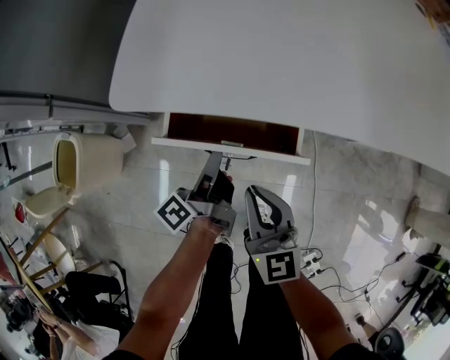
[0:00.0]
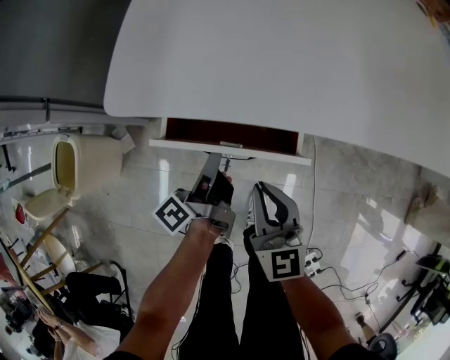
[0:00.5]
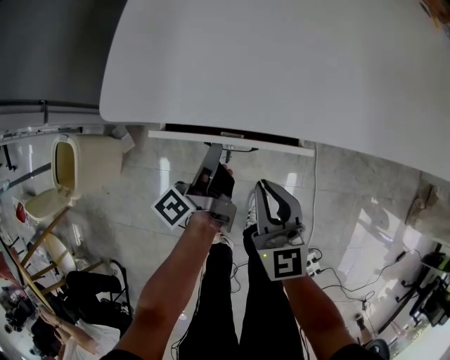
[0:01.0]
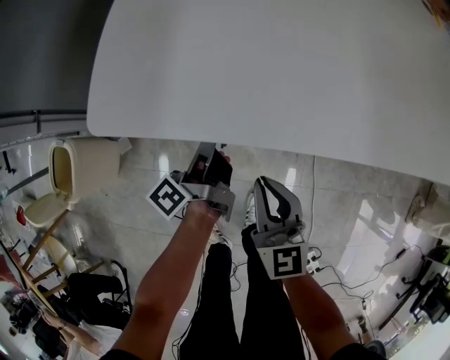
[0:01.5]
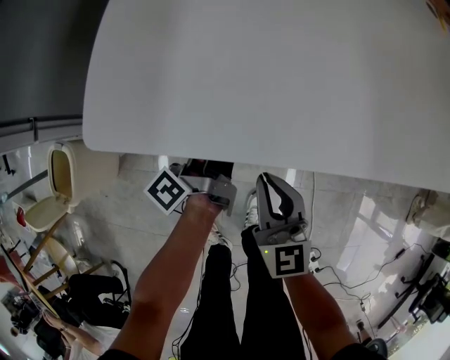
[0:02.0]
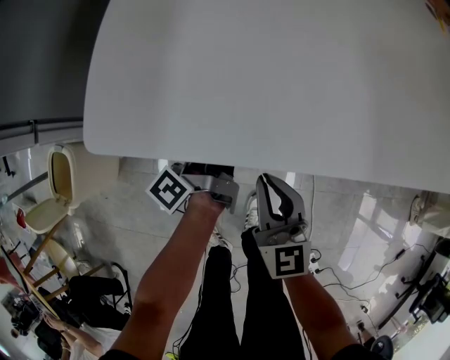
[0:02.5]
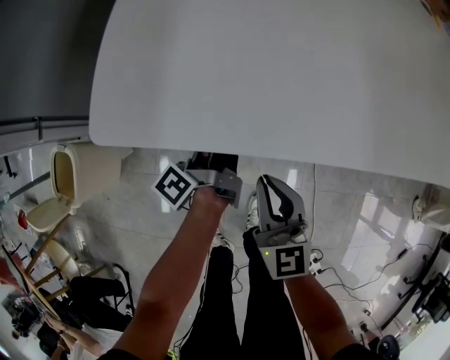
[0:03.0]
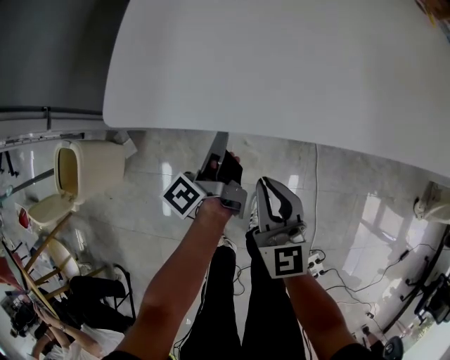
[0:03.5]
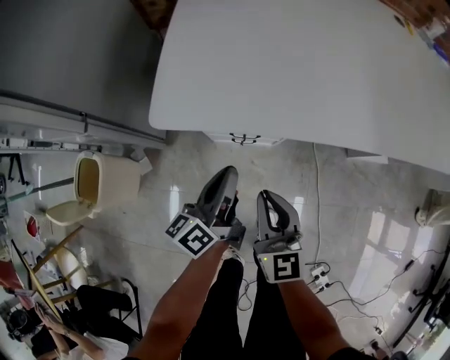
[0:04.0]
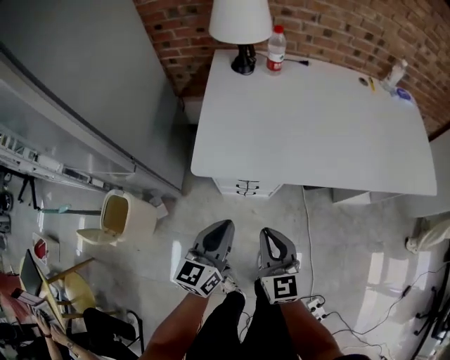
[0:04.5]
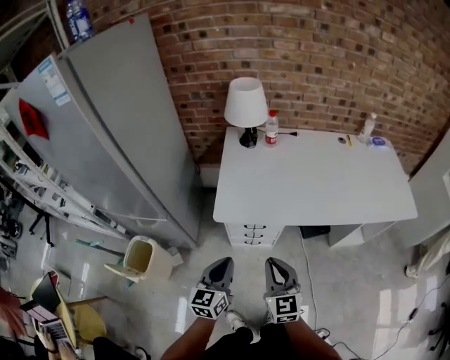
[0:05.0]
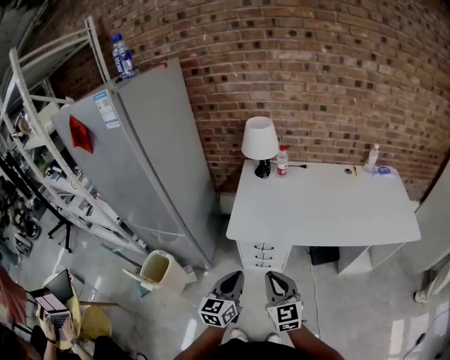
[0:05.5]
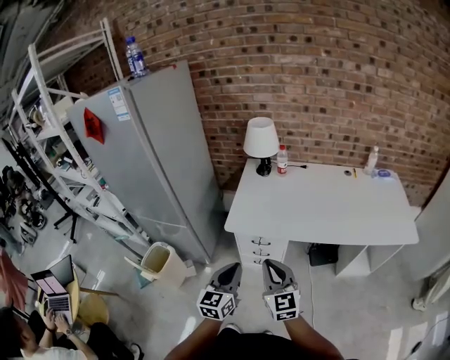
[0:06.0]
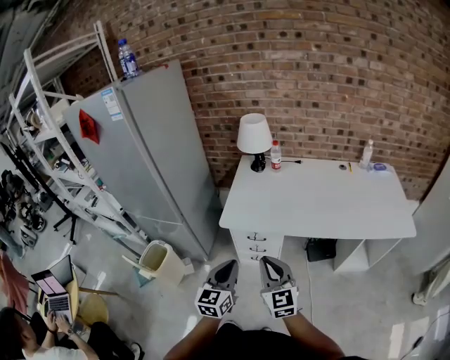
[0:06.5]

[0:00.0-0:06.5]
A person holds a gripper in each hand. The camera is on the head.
0:00.0 to 0:02.0: The left gripper shifts some 10 cm forward. The right gripper heads forward, covering roughly 5 cm.
0:02.0 to 0:04.5: The two grippers go about 25 cm upward and backward. The left gripper twists roughly 60 degrees clockwise, seen from behind.
0:04.5 to 0:06.5: Both grippers travel together upward and backward, approximately 25 cm.

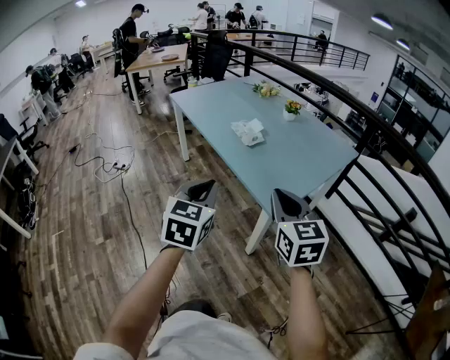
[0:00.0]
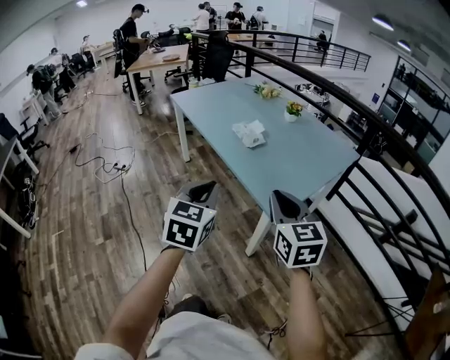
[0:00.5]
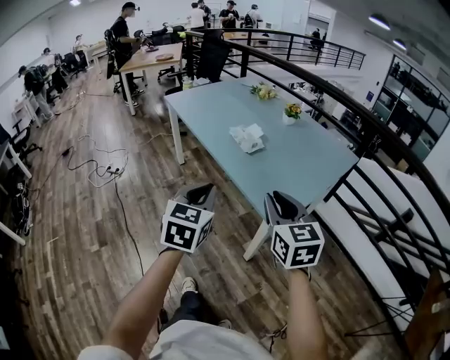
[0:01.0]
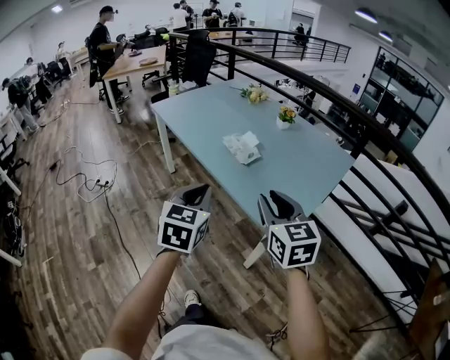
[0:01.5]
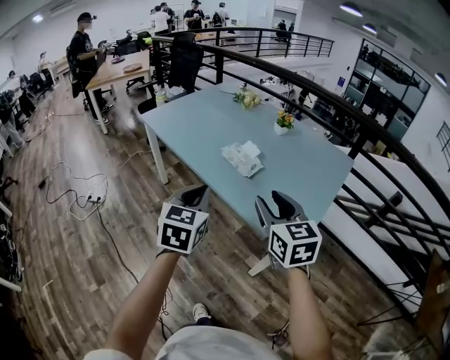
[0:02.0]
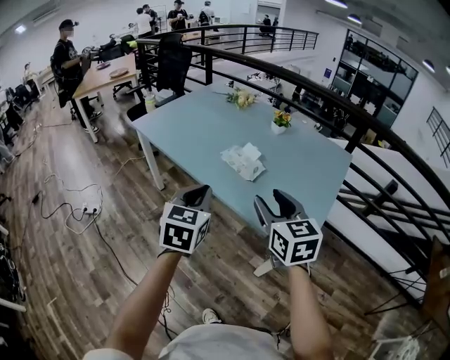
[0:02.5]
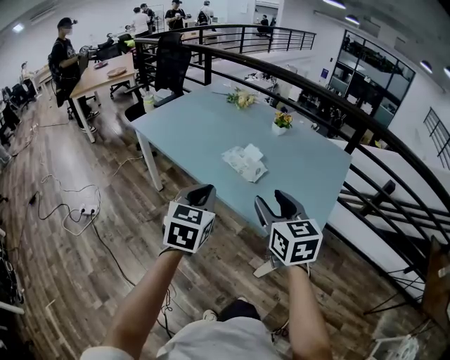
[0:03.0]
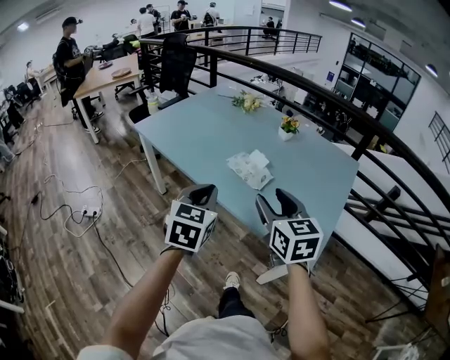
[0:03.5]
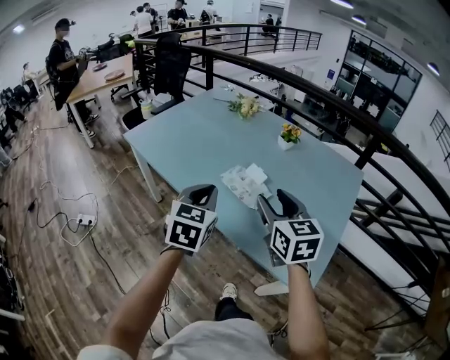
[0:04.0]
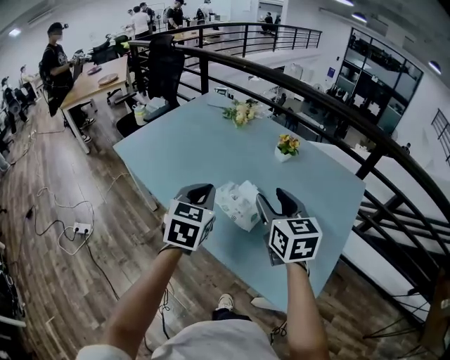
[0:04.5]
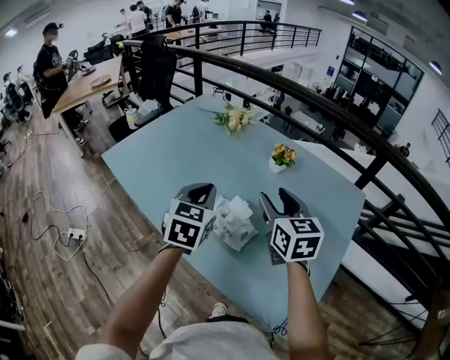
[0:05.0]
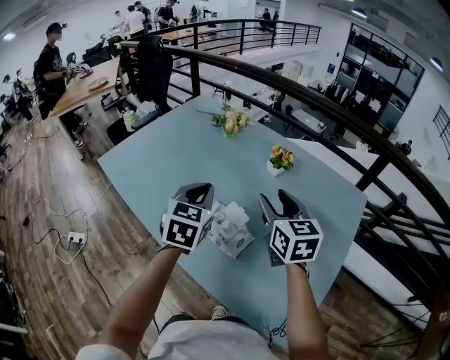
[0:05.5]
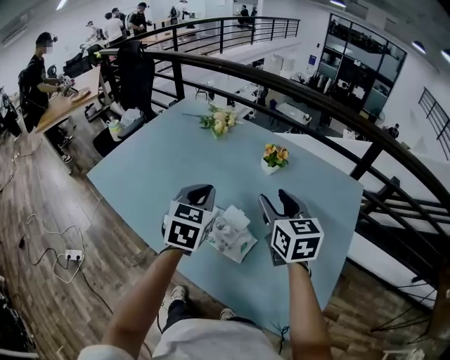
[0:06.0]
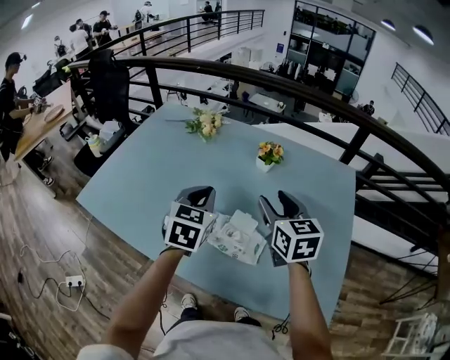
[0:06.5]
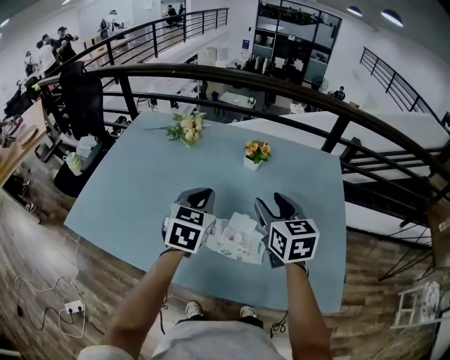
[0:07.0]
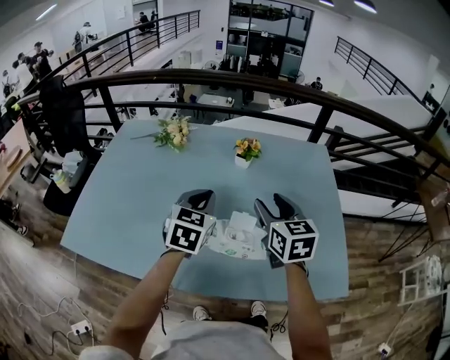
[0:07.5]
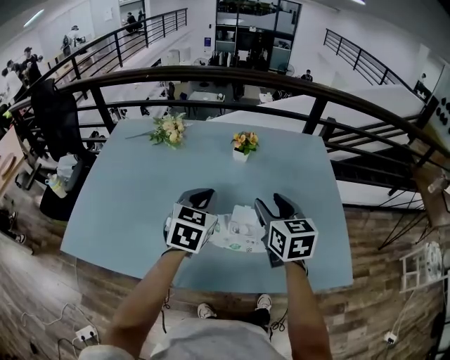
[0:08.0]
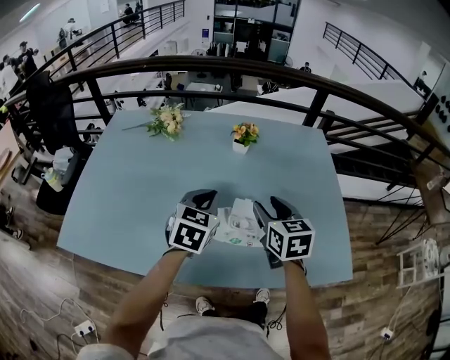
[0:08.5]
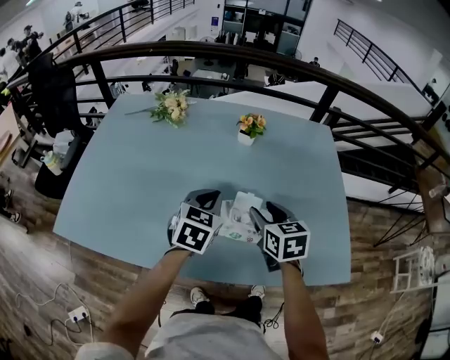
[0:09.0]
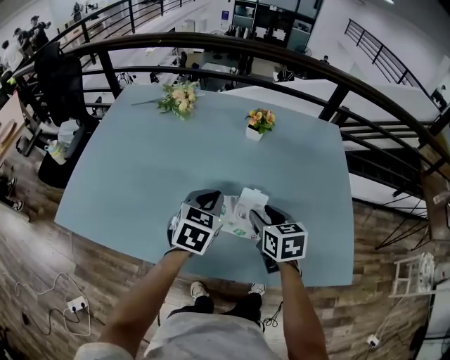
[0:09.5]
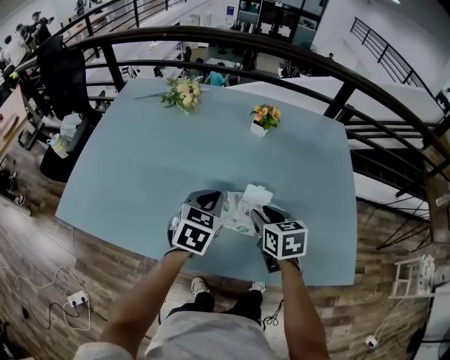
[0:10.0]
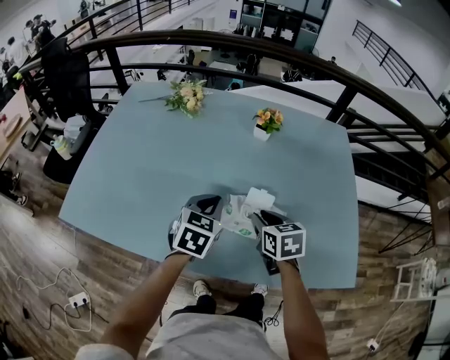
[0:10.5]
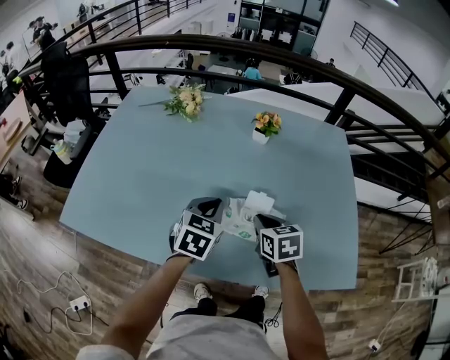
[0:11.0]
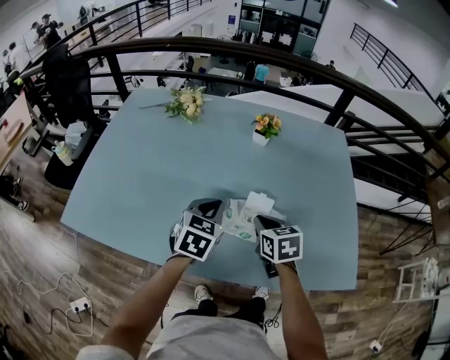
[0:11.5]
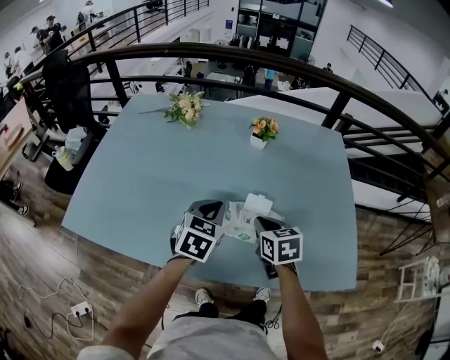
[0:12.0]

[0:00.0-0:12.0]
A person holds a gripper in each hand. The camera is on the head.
0:00.0 to 0:02.0: The left gripper shifts roughly 20 cm forward. Meanwhile the right gripper moves forward and to the left, roughly 20 cm, and opens up.
0:02.0 to 0:04.0: The two grippers go roughly 20 cm forward.
0:04.0 to 0:06.0: The grippers both shift forward by some 25 cm.
0:06.0 to 0:08.0: The left gripper shifts by some 5 cm, and rotates approximately 30 degrees. The right gripper shifts by roughly 5 cm, and turns by approximately 30 degrees.
0:08.0 to 0:10.0: The right gripper shifts about 15 cm downward, and rotates some 20 degrees, while the left gripper heads downward, covering roughly 10 cm.
0:10.0 to 0:12.0: The right gripper closes up.

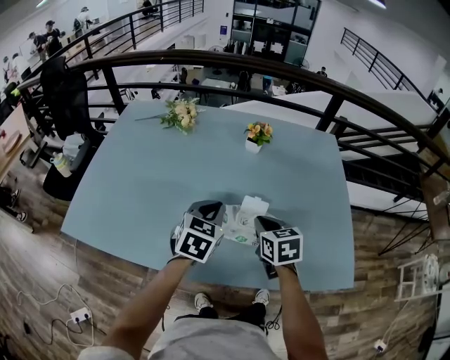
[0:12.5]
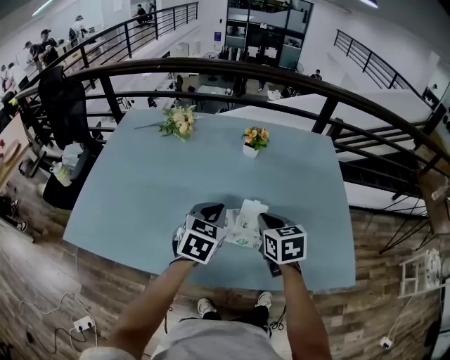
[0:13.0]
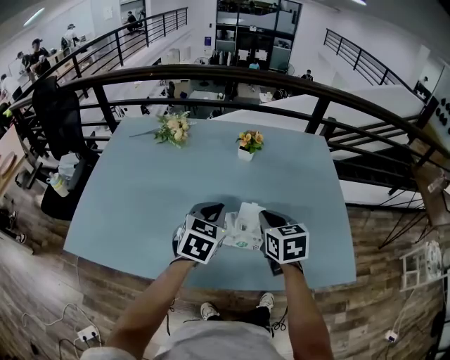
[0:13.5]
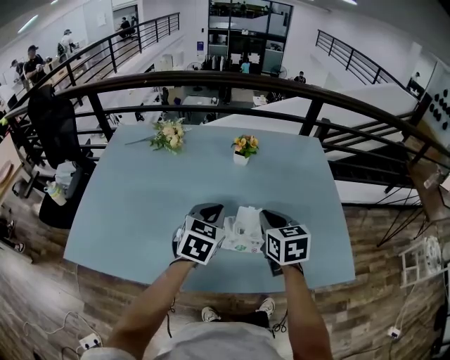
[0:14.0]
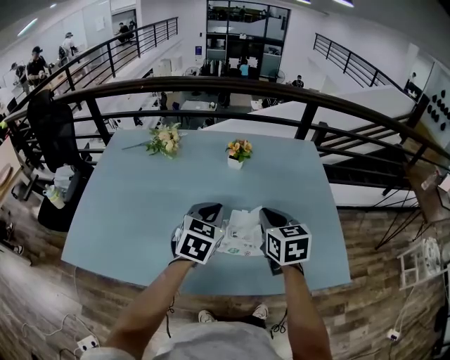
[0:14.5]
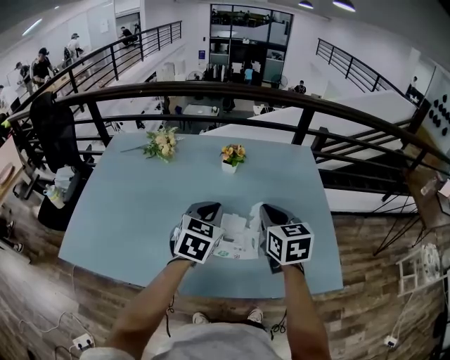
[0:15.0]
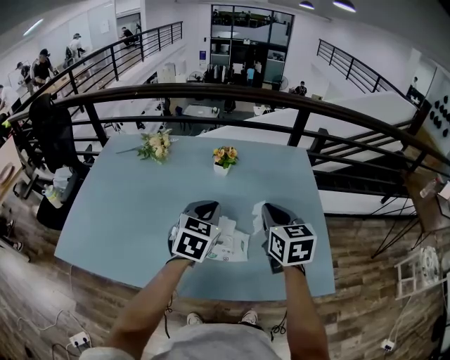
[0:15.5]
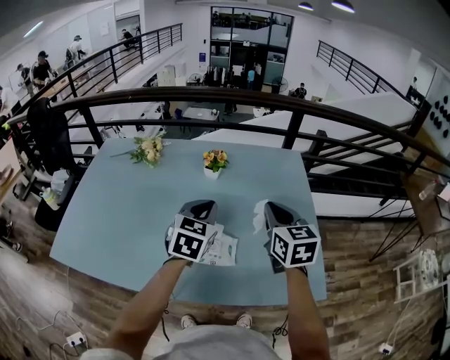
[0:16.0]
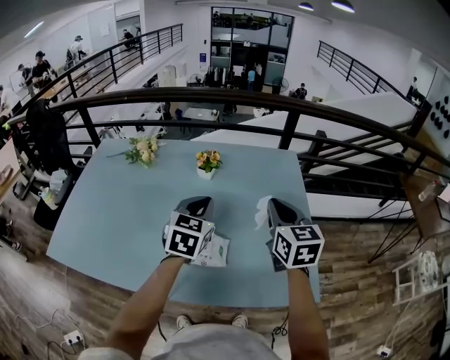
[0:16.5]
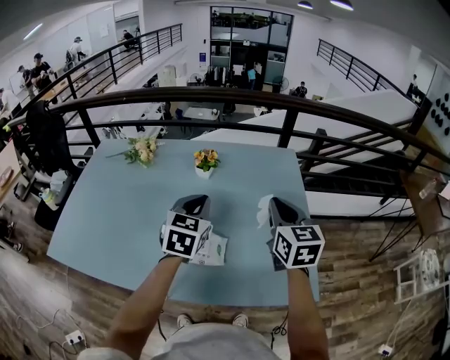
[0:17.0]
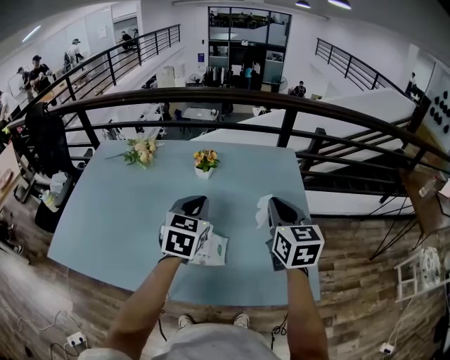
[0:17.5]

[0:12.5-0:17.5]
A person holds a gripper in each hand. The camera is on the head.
0:12.5 to 0:15.0: The left gripper travels upward and to the right by approximately 10 cm, while the right gripper moves upward and to the right, approximately 15 cm.
0:15.0 to 0:17.5: The right gripper moves to the right, about 15 cm. Meanwhile the left gripper moves to the right, roughly 10 cm.

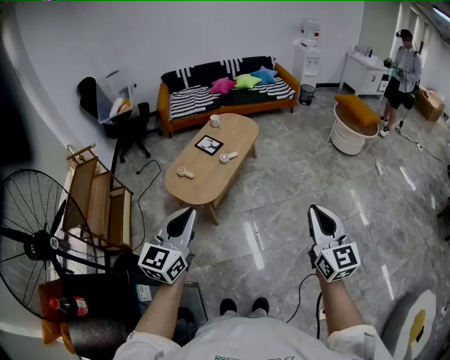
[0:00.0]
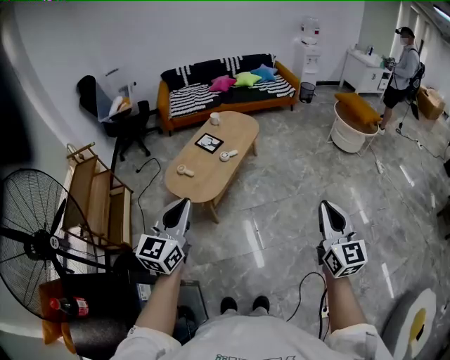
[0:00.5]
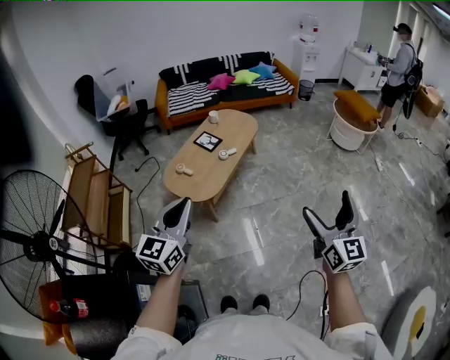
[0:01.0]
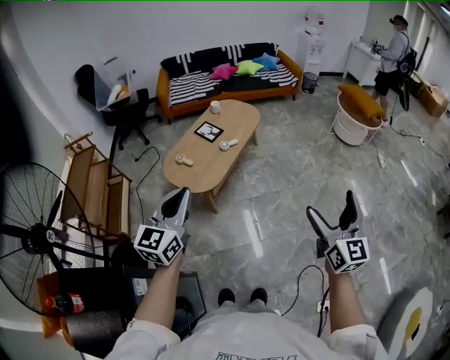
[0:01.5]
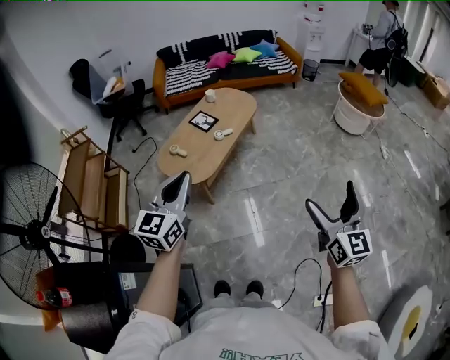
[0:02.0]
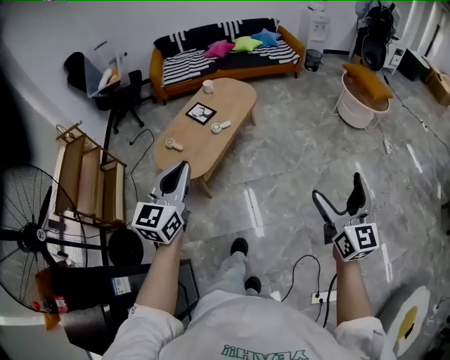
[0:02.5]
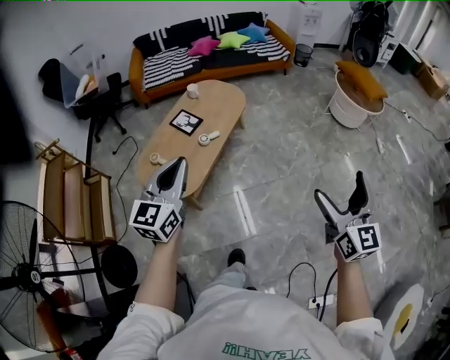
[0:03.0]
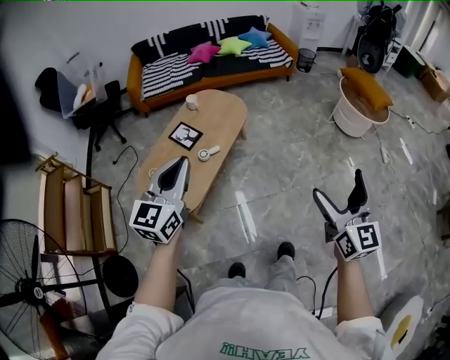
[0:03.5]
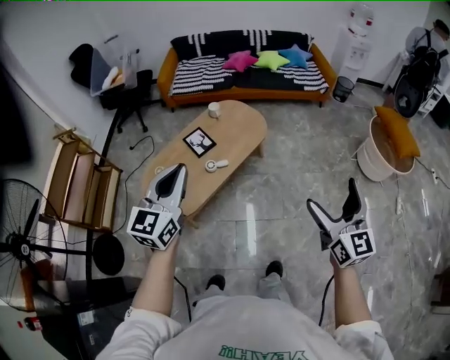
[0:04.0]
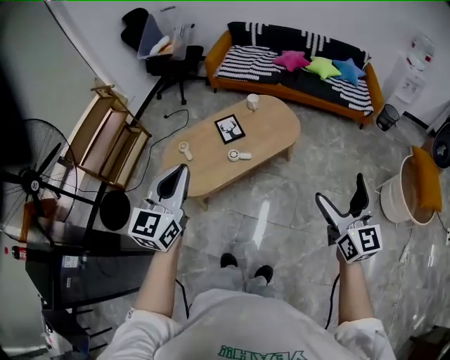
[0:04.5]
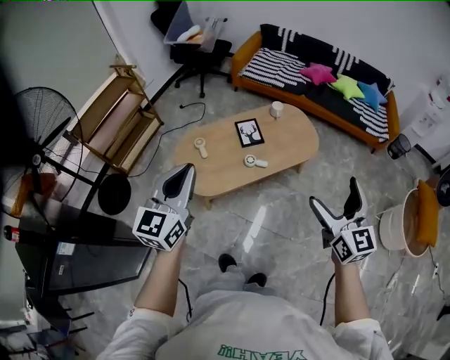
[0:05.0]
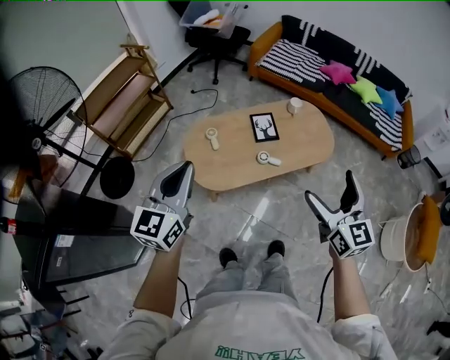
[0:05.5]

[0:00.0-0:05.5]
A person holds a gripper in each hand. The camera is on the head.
0:00.0 to 0:02.0: The left gripper heads forward, covering about 10 cm; the right gripper travels to the right by some 10 cm, and opens its fingers.
0:02.0 to 0:03.5: Both grippers travel together forward, some 30 cm.
0:03.5 to 0:05.5: The left gripper moves approximately 10 cm, and rotates approximately 50 degrees. The right gripper shifts by about 30 cm, and rotates approximately 50 degrees.
